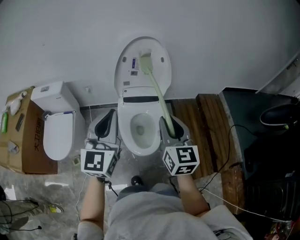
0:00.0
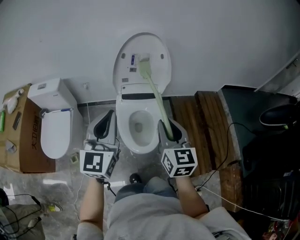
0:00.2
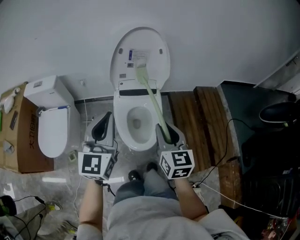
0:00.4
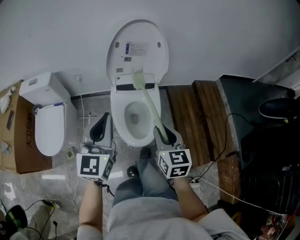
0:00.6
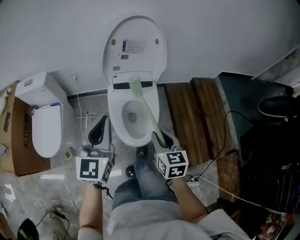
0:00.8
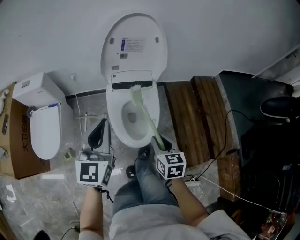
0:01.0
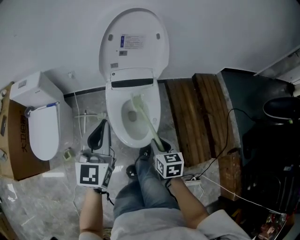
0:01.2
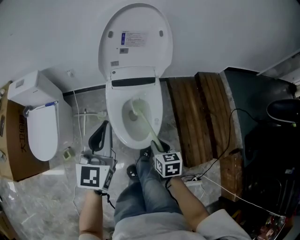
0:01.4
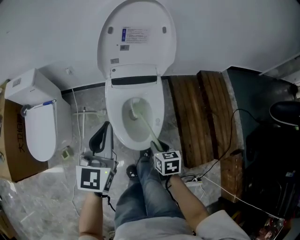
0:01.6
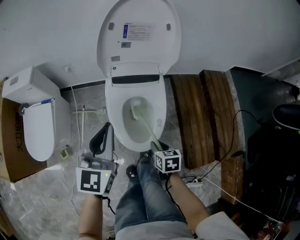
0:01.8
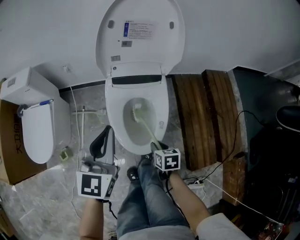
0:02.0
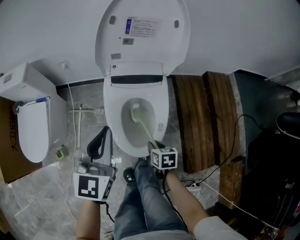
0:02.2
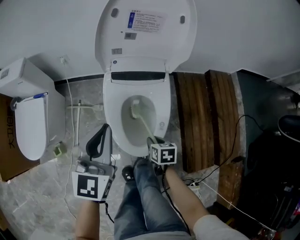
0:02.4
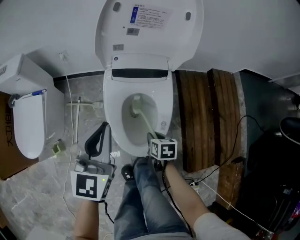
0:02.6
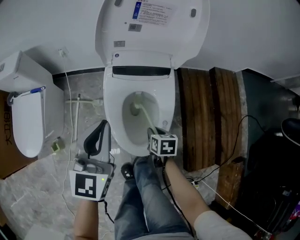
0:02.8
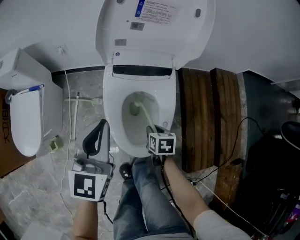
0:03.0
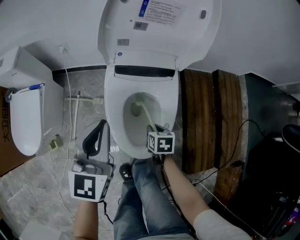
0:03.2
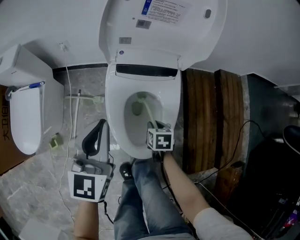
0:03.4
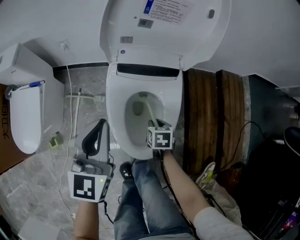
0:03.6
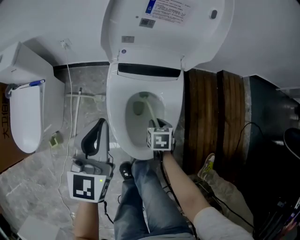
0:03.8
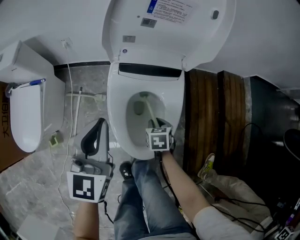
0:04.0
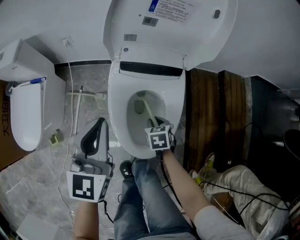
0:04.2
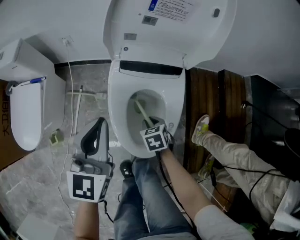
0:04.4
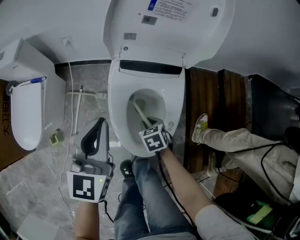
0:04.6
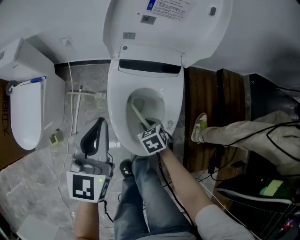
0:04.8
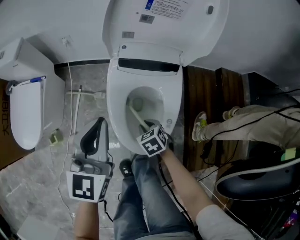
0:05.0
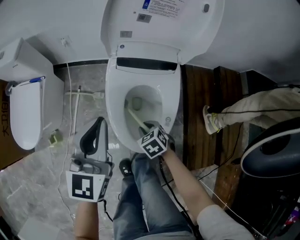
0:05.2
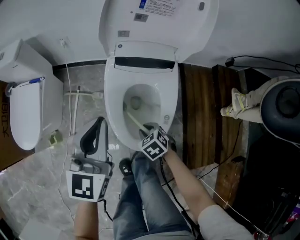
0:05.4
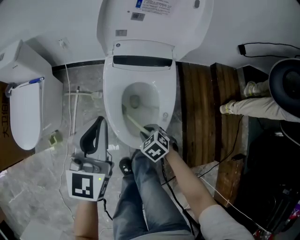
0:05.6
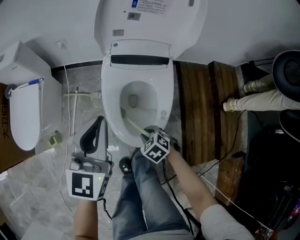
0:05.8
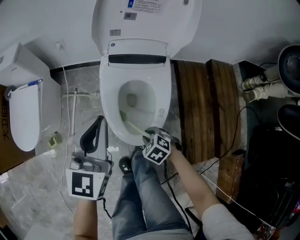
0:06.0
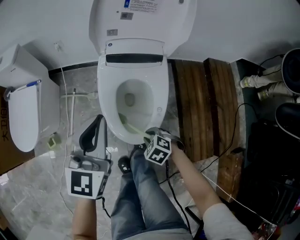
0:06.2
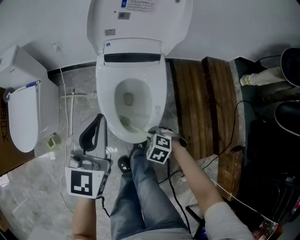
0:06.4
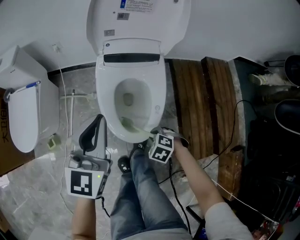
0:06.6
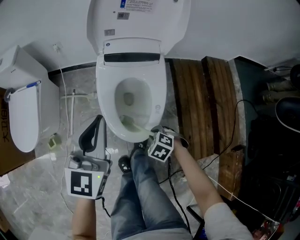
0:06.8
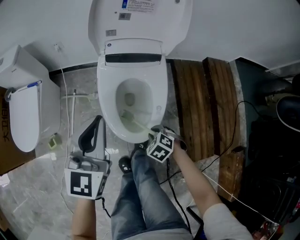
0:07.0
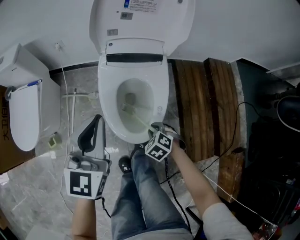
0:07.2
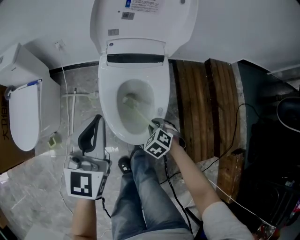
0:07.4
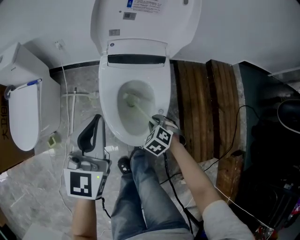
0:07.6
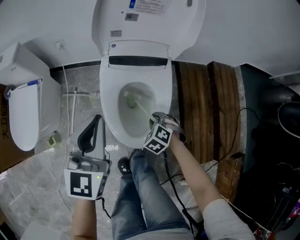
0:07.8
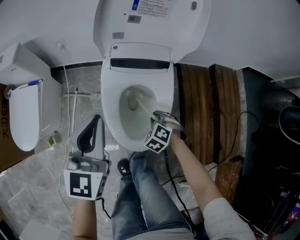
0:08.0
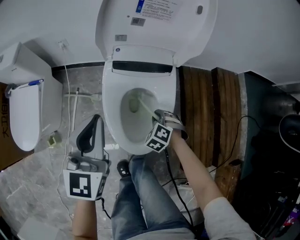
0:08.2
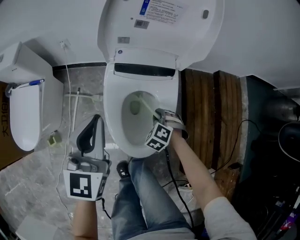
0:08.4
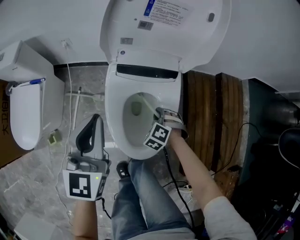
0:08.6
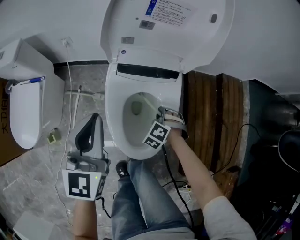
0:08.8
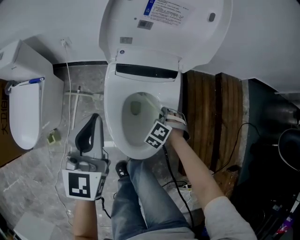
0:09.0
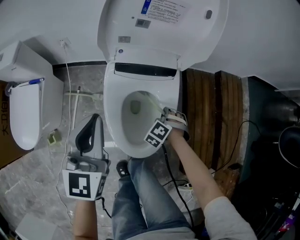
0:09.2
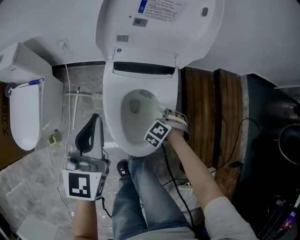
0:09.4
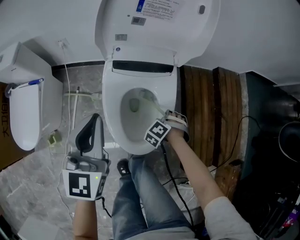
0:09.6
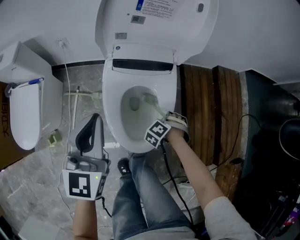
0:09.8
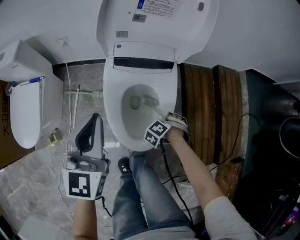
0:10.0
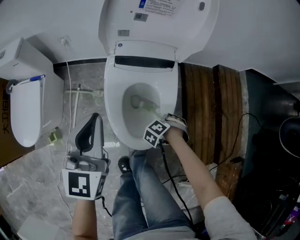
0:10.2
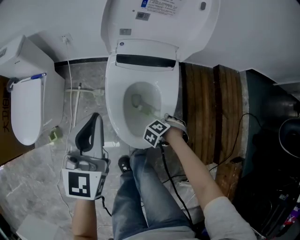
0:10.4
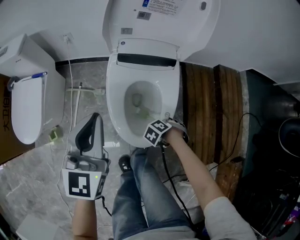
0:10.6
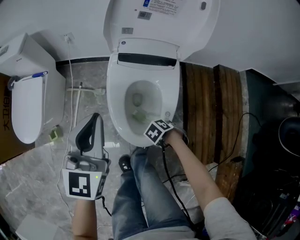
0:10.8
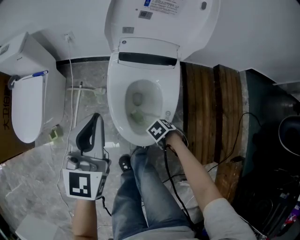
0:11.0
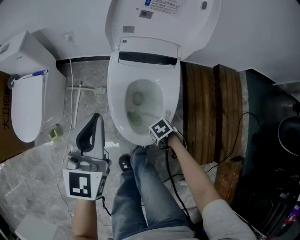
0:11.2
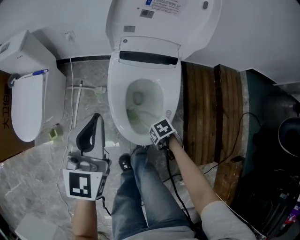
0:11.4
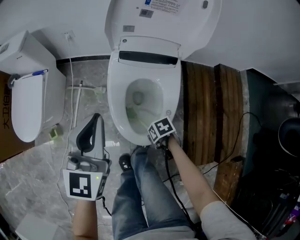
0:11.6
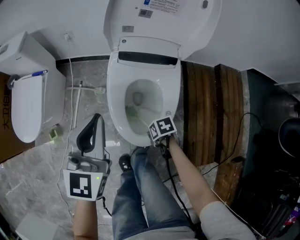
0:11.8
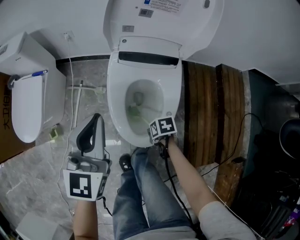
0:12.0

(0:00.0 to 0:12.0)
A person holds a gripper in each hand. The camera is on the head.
0:00.0 - 0:01.6: The left gripper travels downward by some 15 cm. The right gripper moves downward, roughly 35 cm, and angles its fingers downward, by approximately 40 degrees.
0:01.6 - 0:03.0: The grippers both shift downward and forward by about 15 cm.
0:03.0 - 0:04.4: The right gripper ends up approximately 5 cm from where it was, and turns by approximately 30 degrees.
0:04.4 - 0:06.0: The right gripper is displaced backward by approximately 15 cm, and swivels some 30 degrees. Meanwhile the left gripper is displaced backward by some 5 cm.
0:06.0 - 0:07.6: The right gripper ends up about 10 cm from where it was.
0:07.6 - 0:09.0: The left gripper travels forward by about 5 cm; the right gripper is displaced forward by some 15 cm, and swivels some 30 degrees.
0:09.0 - 0:10.4: The left gripper shifts by approximately 5 cm, while the right gripper moves some 15 cm, and changes its angle by about 30 degrees.
0:10.4 - 0:12.0: The right gripper moves approximately 10 cm, and swivels roughly 70 degrees.

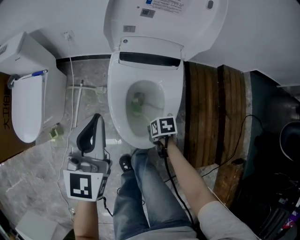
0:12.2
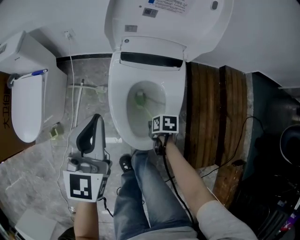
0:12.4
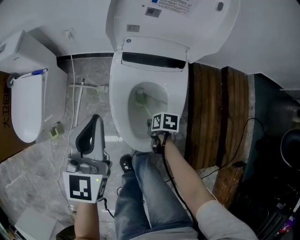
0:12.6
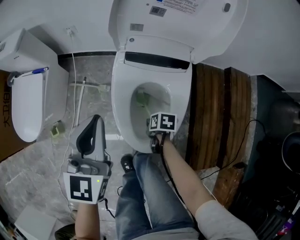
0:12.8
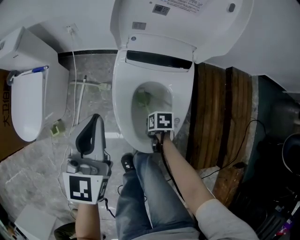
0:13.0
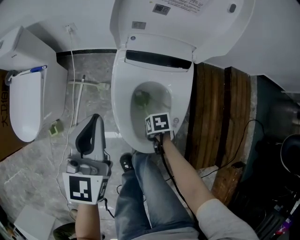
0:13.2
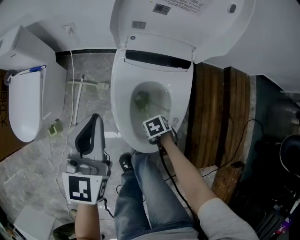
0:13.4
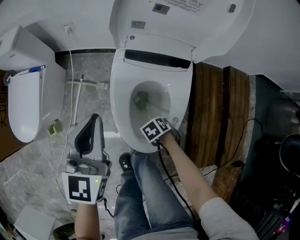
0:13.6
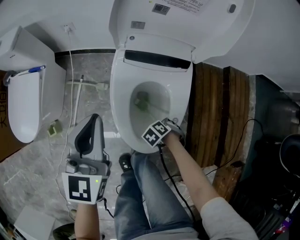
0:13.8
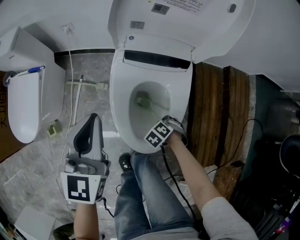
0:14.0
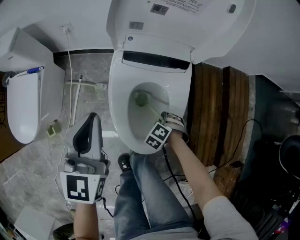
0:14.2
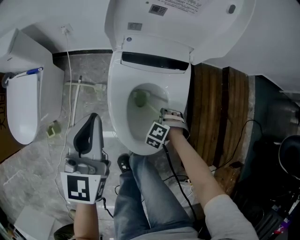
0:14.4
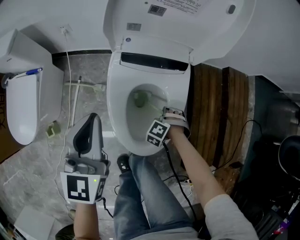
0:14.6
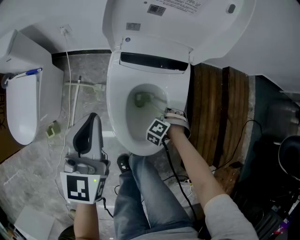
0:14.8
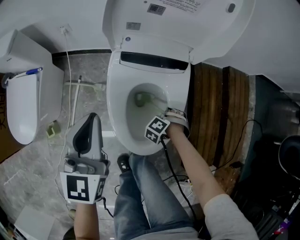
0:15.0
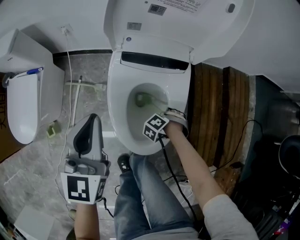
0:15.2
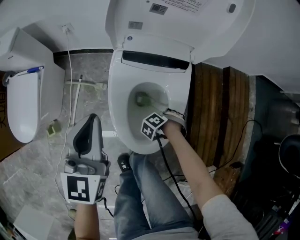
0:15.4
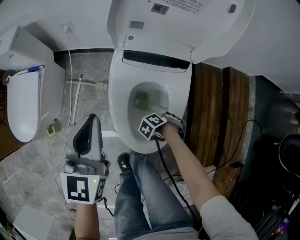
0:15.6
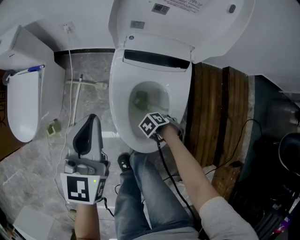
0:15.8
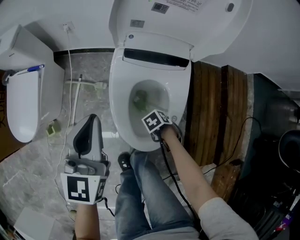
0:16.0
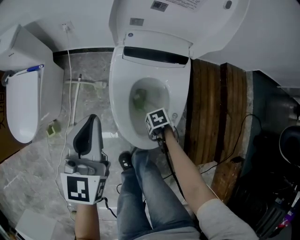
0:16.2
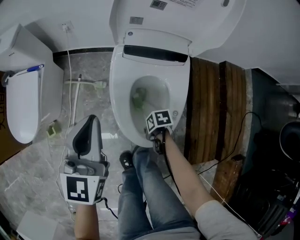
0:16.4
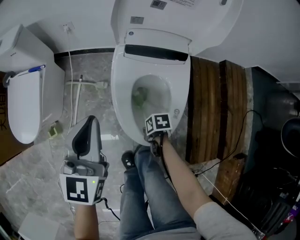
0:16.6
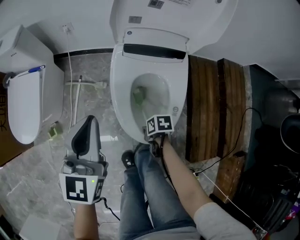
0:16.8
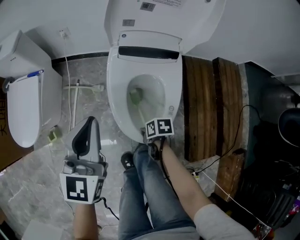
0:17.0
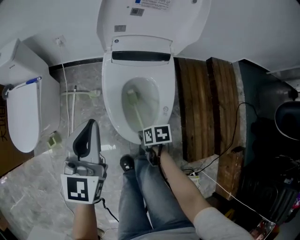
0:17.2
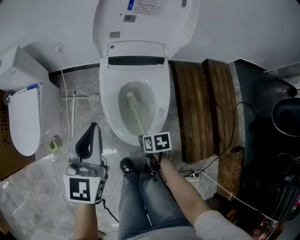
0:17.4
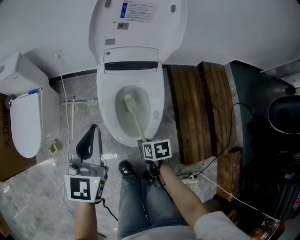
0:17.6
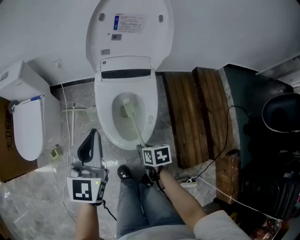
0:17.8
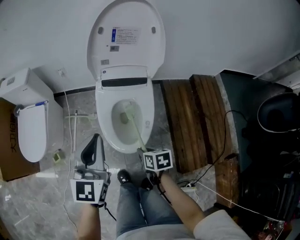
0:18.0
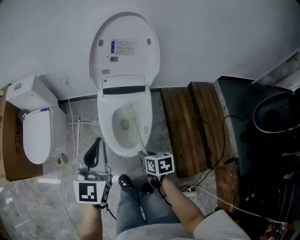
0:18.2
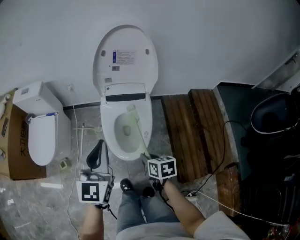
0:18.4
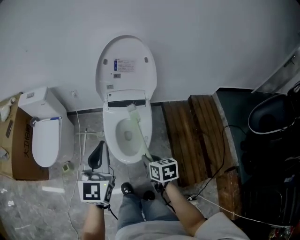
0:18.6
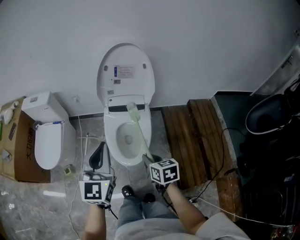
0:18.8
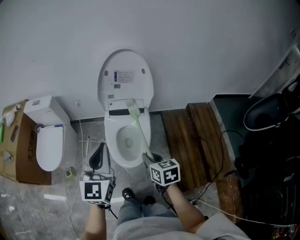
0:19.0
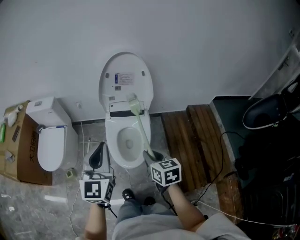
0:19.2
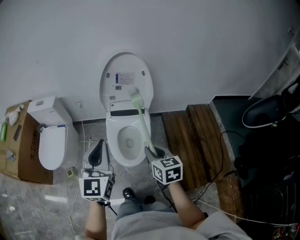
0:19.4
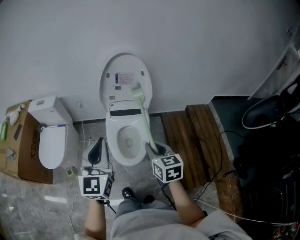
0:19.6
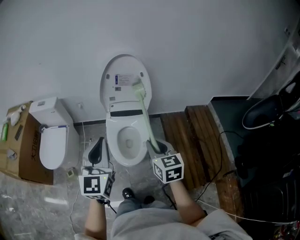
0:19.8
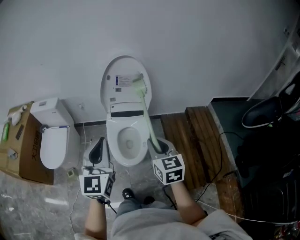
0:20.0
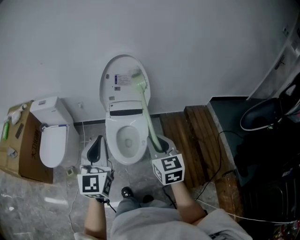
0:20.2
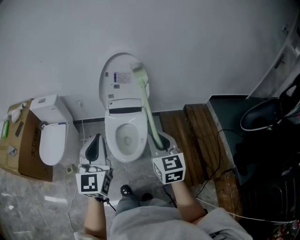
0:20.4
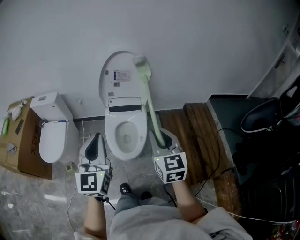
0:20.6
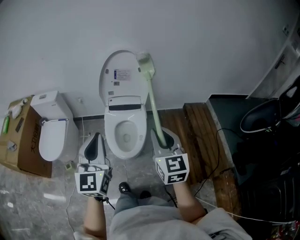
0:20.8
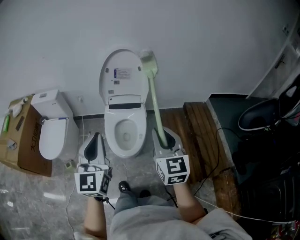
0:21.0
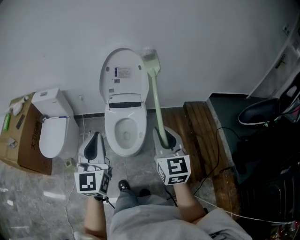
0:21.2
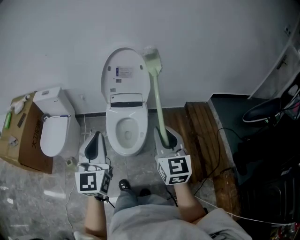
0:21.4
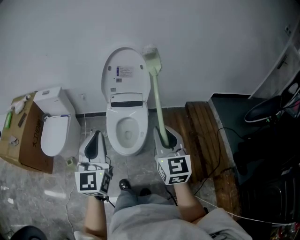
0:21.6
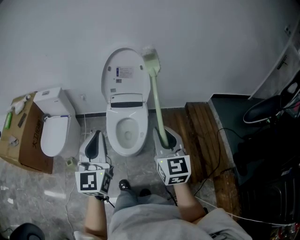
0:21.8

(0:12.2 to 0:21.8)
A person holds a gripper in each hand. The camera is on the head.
0:12.2 - 0:13.8: The right gripper moves downward, some 5 cm, and twists roughly 50 degrees counterclockwise, seen from behind. The left gripper moves approximately 5 cm.
0:13.8 - 0:15.4: The right gripper changes place by about 5 cm, and rotates some 20 degrees.
0:15.4 - 0:17.0: The right gripper shifts by approximately 15 cm, and turns by approximately 90 degrees. The left gripper ends up some 5 cm from where it was.
0:17.0 - 0:18.6: The left gripper goes roughly 25 cm upward and backward. Meanwhile the right gripper moves upward, roughly 35 cm, and changes its angle by approximately 40 degrees.
0:18.6 - 0:20.2: The right gripper travels upward by approximately 25 cm, and rotates some 40 degrees, while the left gripper goes approximately 15 cm upward and backward.
0:20.2 - 0:21.8: The left gripper shifts some 5 cm backward, while the right gripper is displaced backward and upward by about 10 cm.

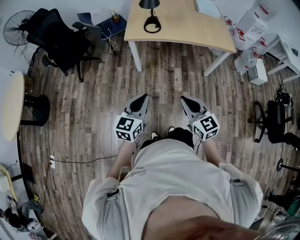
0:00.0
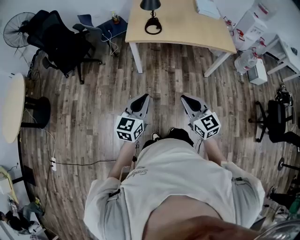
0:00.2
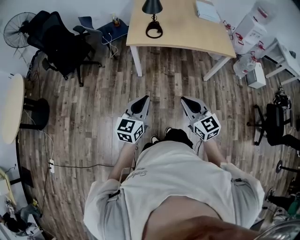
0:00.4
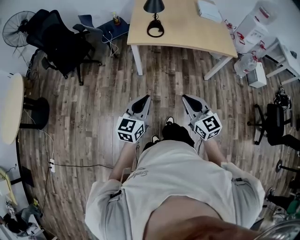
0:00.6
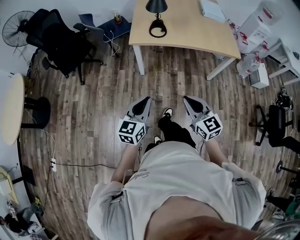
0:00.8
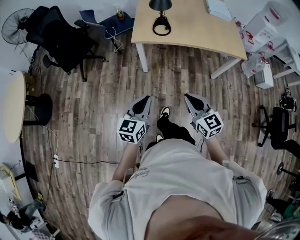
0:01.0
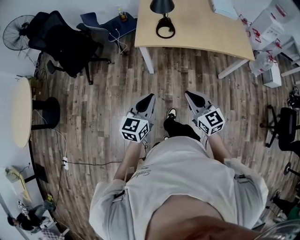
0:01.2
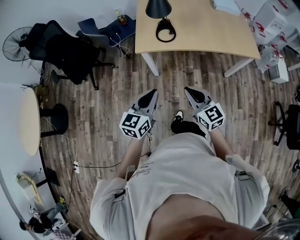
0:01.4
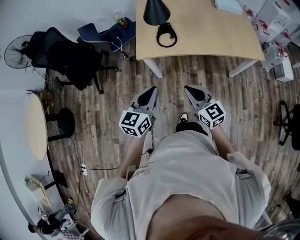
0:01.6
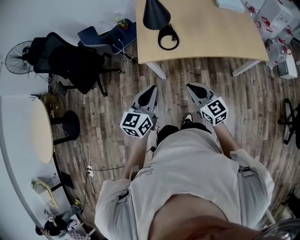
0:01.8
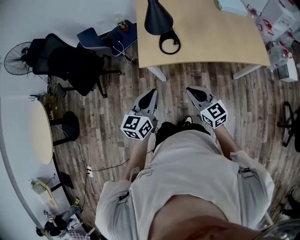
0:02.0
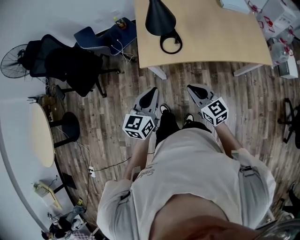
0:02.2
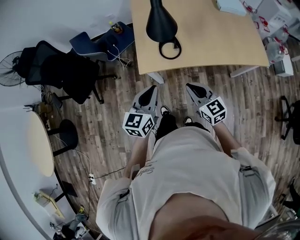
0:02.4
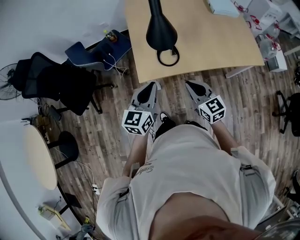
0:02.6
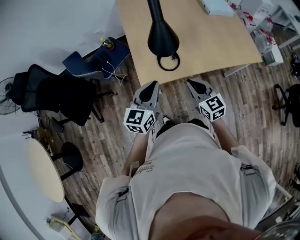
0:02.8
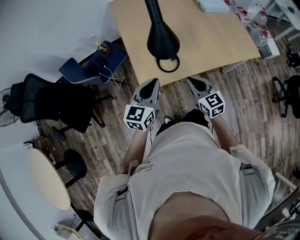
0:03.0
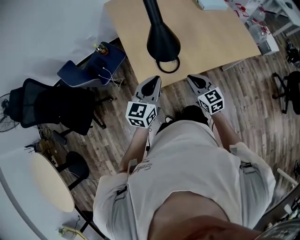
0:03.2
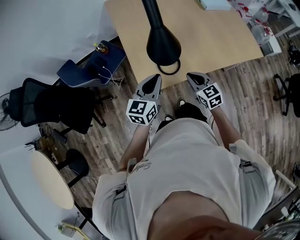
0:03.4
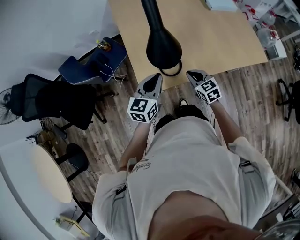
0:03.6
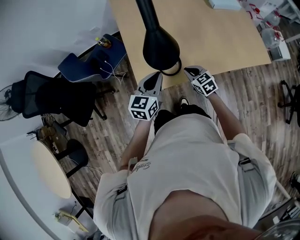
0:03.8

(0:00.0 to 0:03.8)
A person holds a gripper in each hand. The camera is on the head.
0:00.0 - 0:01.2: Both grippers move forward, roughly 15 cm.
0:01.2 - 0:02.6: Both grippers travel together forward, approximately 35 cm.
0:02.6 - 0:03.8: Both grippers move forward and downward, roughly 20 cm. The right gripper rotates about 20 degrees.
